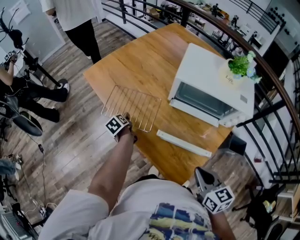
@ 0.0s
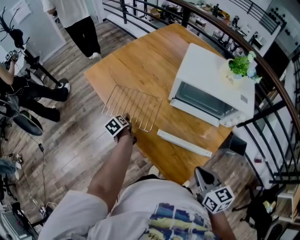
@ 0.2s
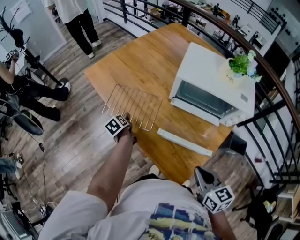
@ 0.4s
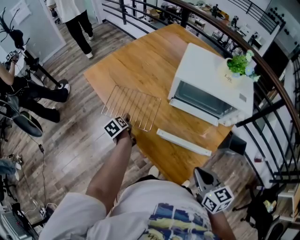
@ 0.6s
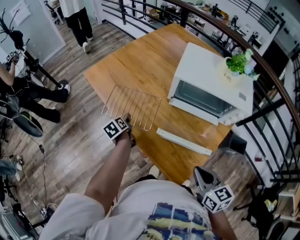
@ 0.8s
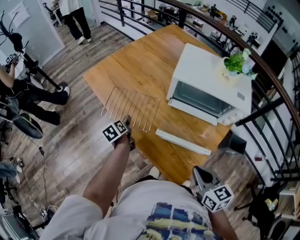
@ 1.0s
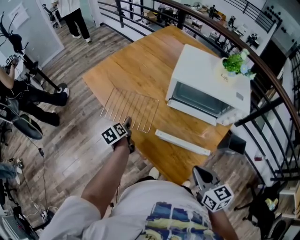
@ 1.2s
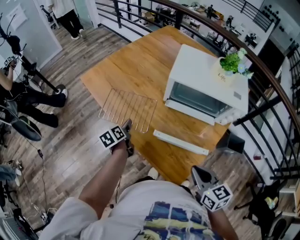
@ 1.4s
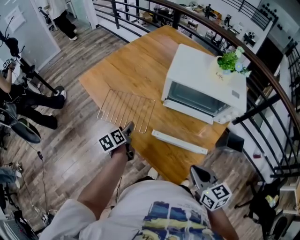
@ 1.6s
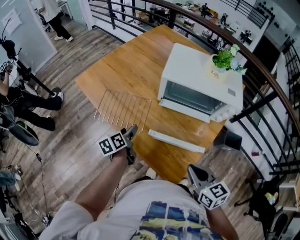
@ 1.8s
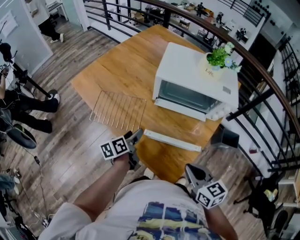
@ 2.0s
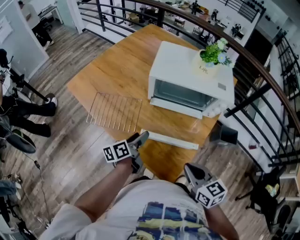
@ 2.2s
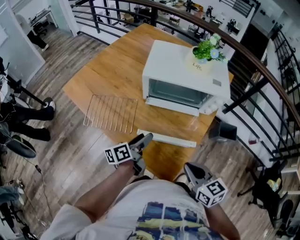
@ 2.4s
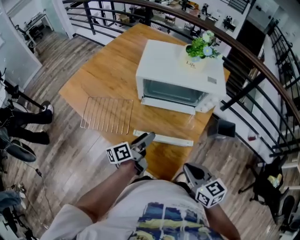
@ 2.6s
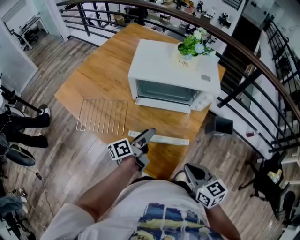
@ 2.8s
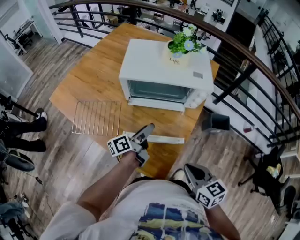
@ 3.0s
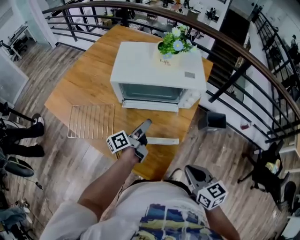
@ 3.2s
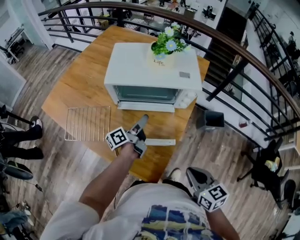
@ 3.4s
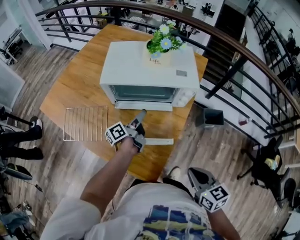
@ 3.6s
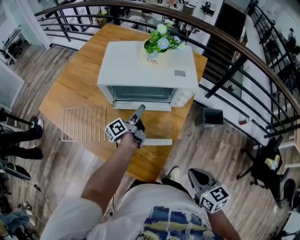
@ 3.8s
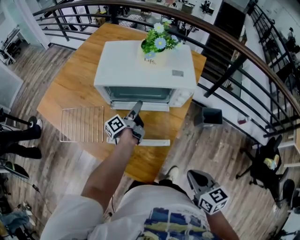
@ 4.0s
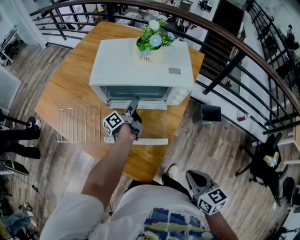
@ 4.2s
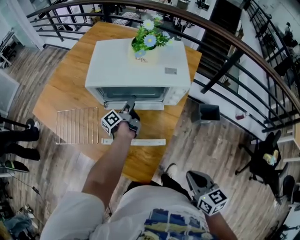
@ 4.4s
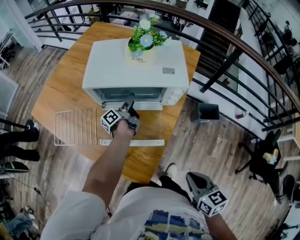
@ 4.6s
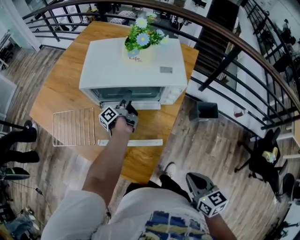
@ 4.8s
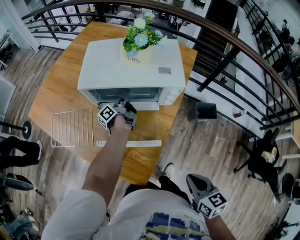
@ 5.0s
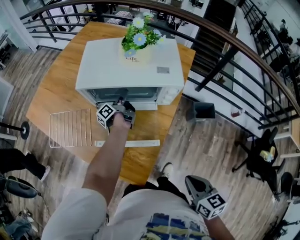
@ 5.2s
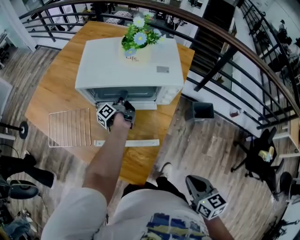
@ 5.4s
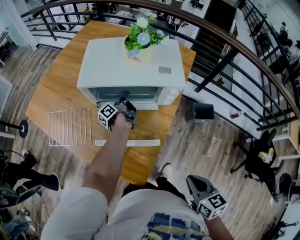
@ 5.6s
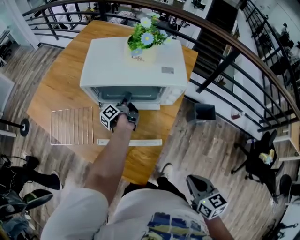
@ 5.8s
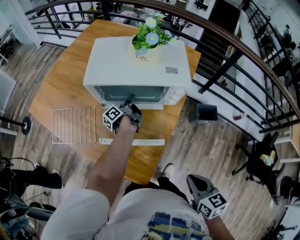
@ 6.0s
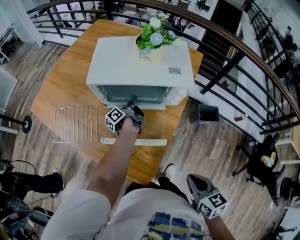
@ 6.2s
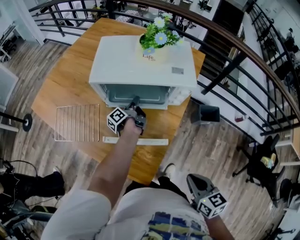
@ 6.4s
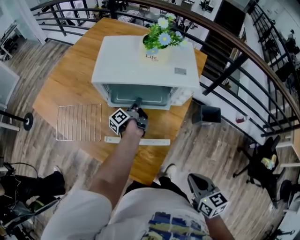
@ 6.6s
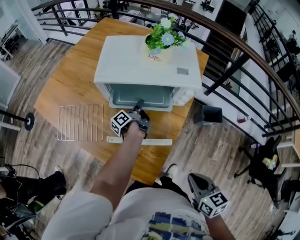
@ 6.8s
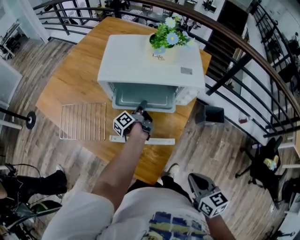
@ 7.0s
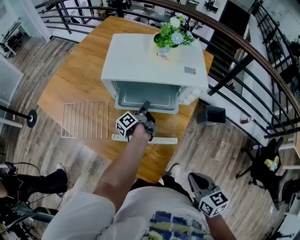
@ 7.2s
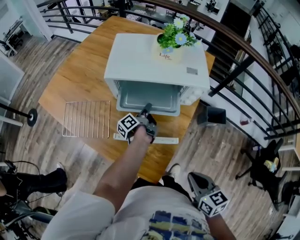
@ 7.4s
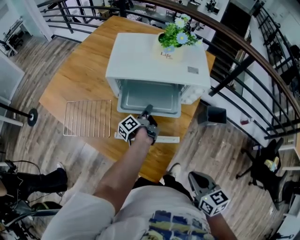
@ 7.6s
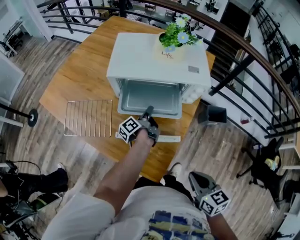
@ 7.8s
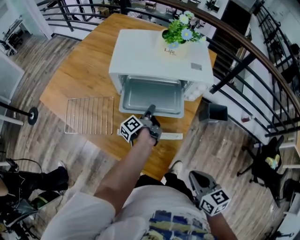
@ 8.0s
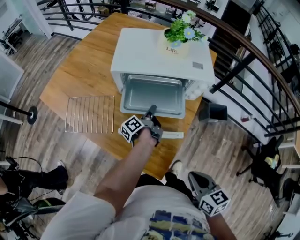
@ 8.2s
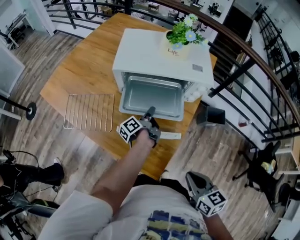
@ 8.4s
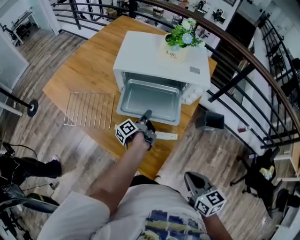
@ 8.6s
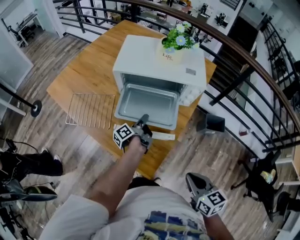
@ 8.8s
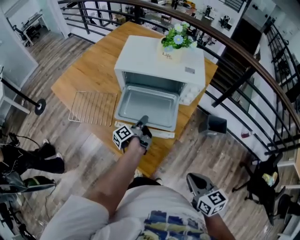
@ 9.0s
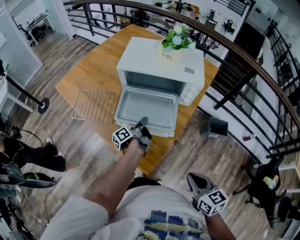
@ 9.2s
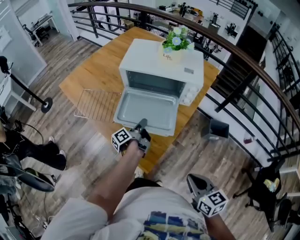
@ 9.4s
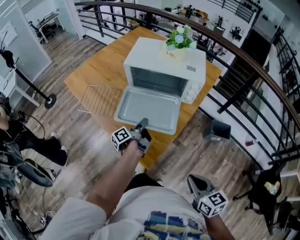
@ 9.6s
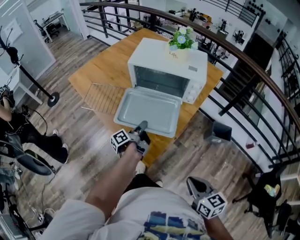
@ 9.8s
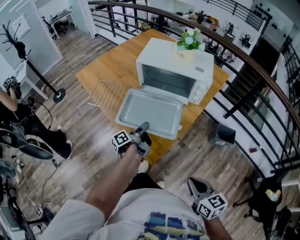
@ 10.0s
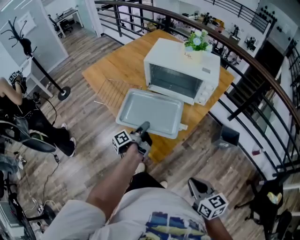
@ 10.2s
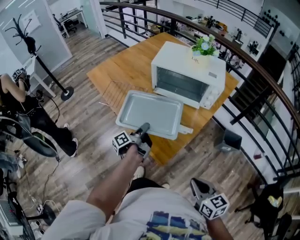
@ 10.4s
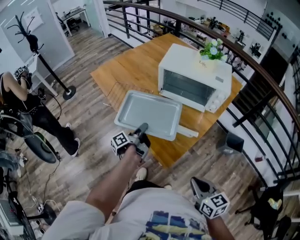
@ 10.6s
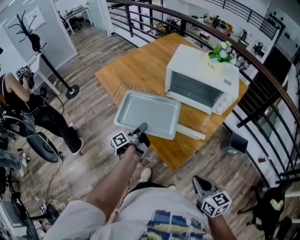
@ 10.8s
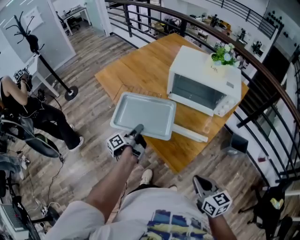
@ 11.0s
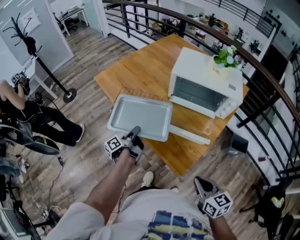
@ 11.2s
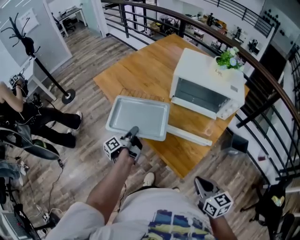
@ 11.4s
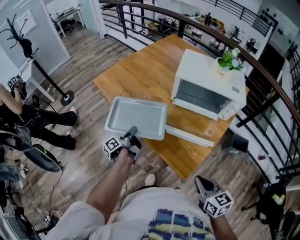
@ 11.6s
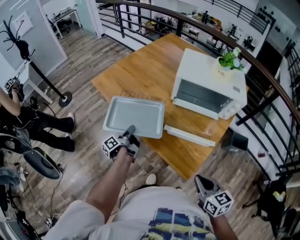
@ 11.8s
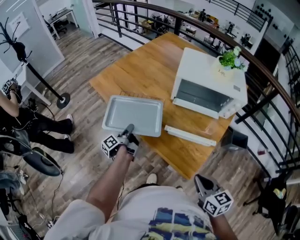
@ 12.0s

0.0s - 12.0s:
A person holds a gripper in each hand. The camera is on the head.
1.6s - 3.0s: The right gripper moves roughly 10 cm.
3.0s - 4.4s: The right gripper ends up approximately 10 cm from where it was.
6.0s - 7.6s: The right gripper shifts by approximately 5 cm.
7.6s - 9.0s: The right gripper shifts by approximately 5 cm.
9.0s - 10.4s: The right gripper shifts by roughly 10 cm.
10.4s - 12.0s: The right gripper ends up roughly 20 cm from where it was.

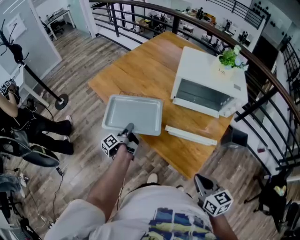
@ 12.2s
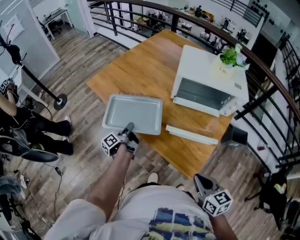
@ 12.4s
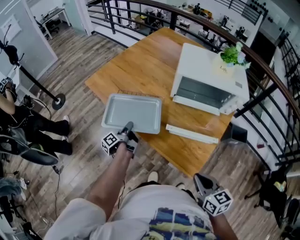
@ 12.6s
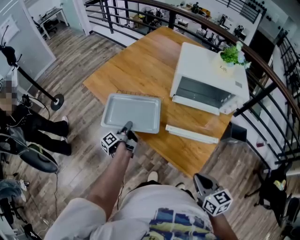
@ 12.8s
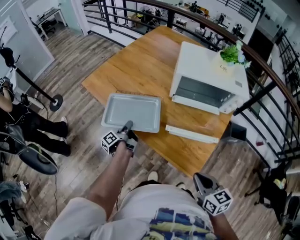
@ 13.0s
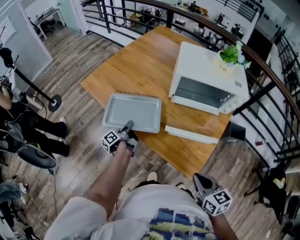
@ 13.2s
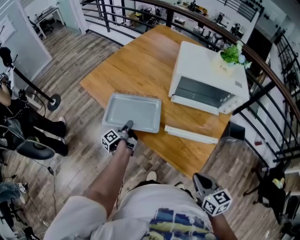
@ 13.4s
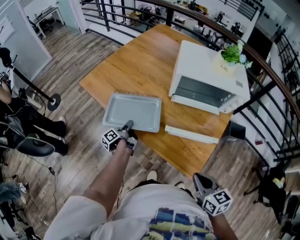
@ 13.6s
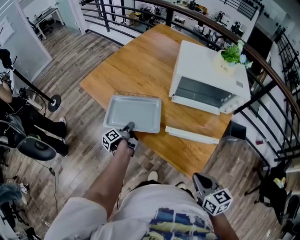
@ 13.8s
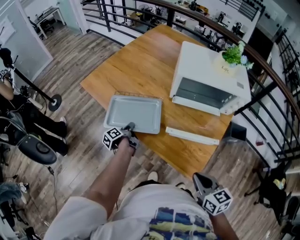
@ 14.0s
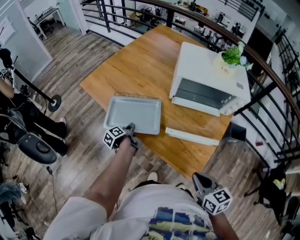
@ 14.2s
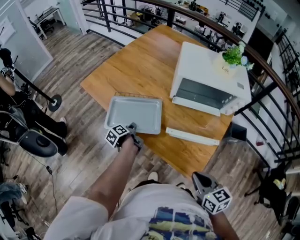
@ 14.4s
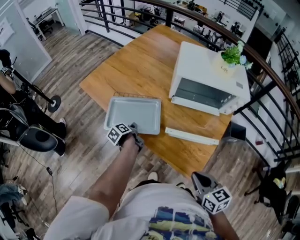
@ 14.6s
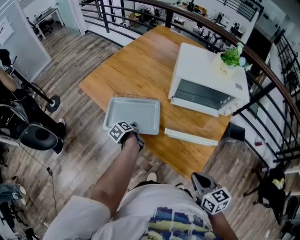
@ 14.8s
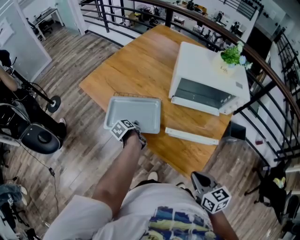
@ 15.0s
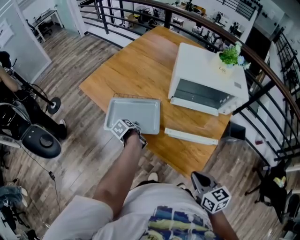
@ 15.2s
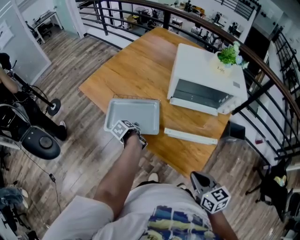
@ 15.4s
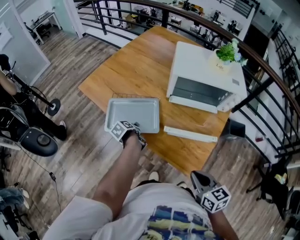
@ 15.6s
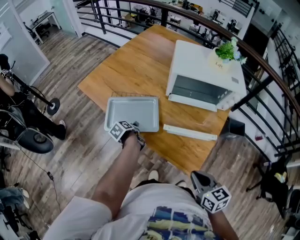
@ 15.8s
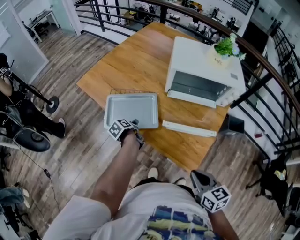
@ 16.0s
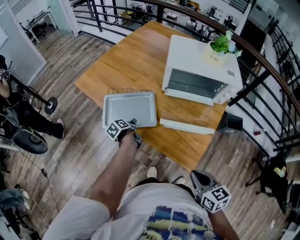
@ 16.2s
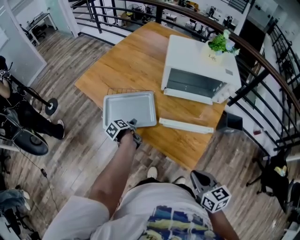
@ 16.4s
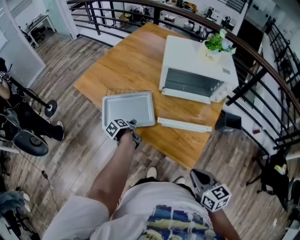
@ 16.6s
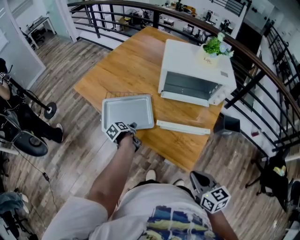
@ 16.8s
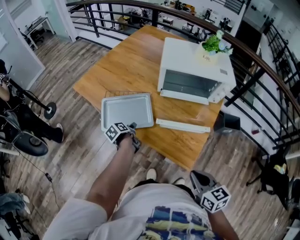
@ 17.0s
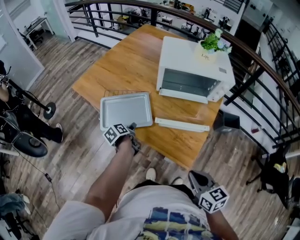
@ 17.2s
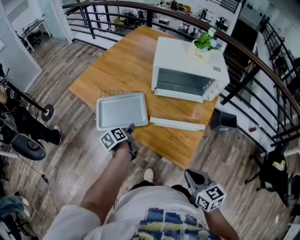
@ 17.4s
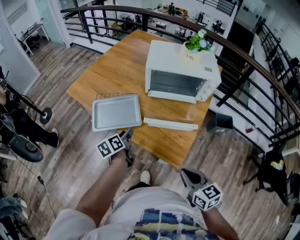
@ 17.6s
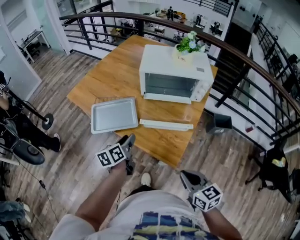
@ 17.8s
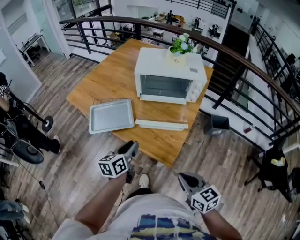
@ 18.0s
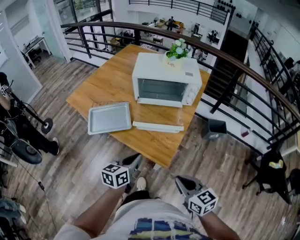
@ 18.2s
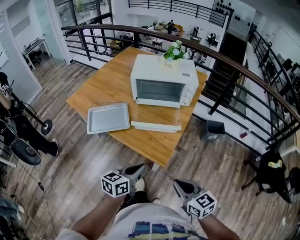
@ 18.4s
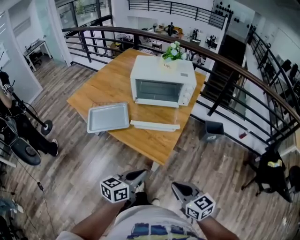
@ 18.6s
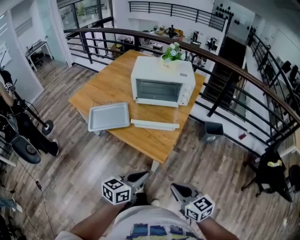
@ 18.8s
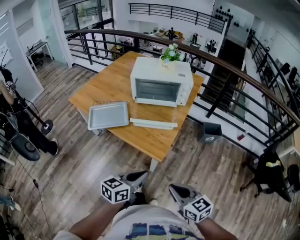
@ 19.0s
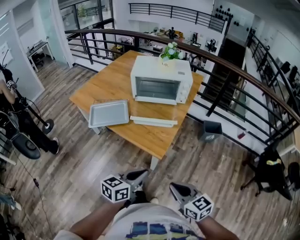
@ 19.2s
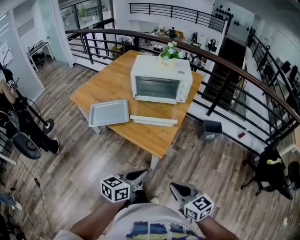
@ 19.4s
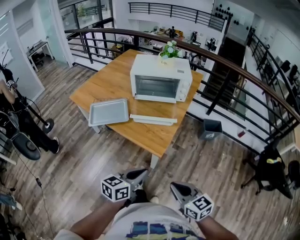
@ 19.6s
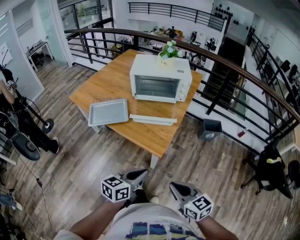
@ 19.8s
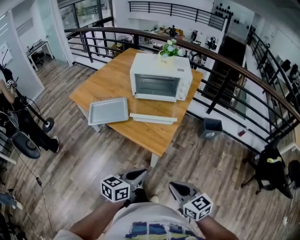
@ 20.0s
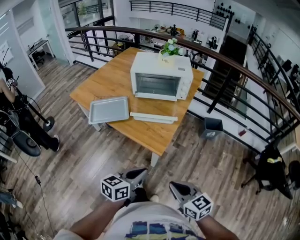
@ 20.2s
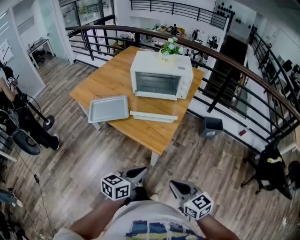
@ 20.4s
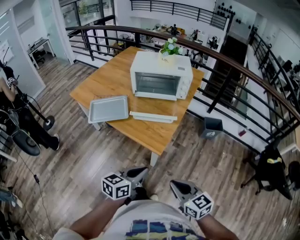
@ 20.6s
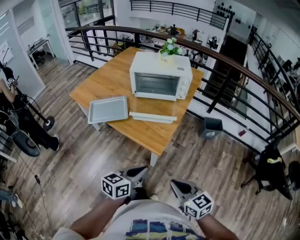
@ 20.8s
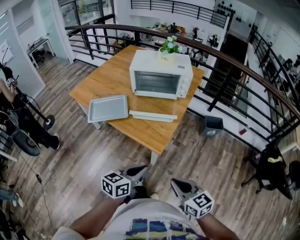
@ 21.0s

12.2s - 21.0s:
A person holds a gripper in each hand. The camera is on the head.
15.2s - 16.6s: The right gripper ends up about 5 cm from where it was.
16.6s - 18.0s: The right gripper changes place by some 10 cm.
18.0s - 19.6s: The right gripper ends up approximately 15 cm from where it was.

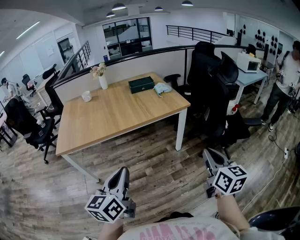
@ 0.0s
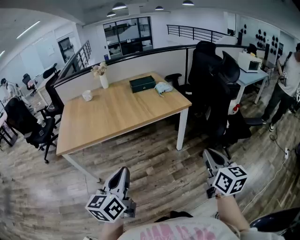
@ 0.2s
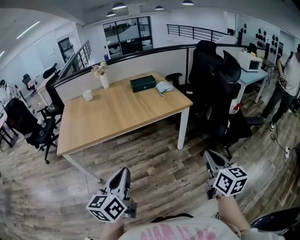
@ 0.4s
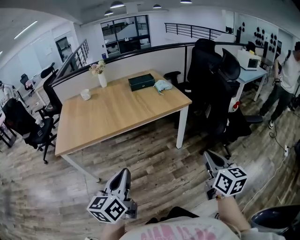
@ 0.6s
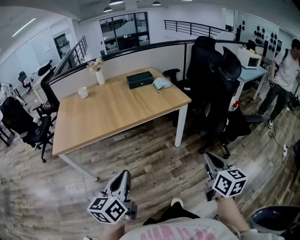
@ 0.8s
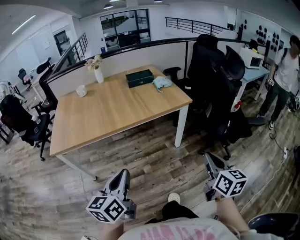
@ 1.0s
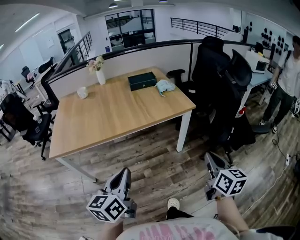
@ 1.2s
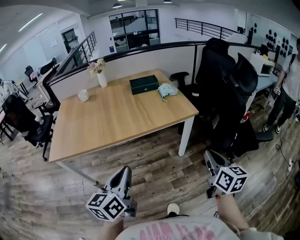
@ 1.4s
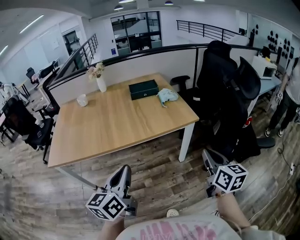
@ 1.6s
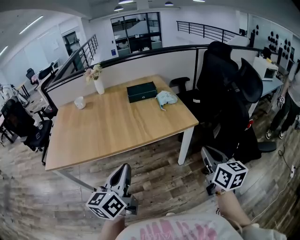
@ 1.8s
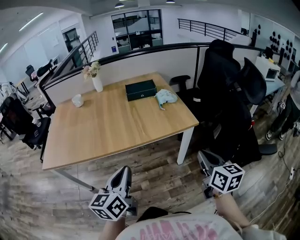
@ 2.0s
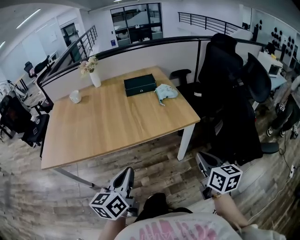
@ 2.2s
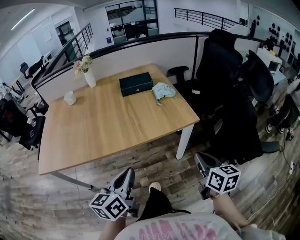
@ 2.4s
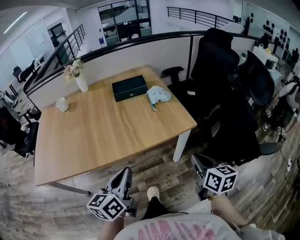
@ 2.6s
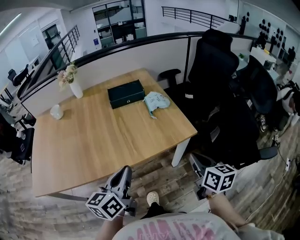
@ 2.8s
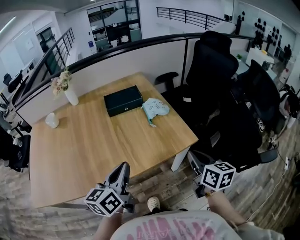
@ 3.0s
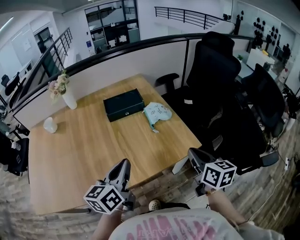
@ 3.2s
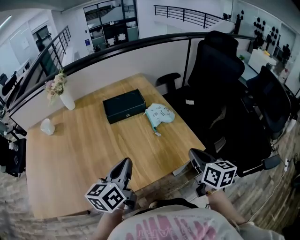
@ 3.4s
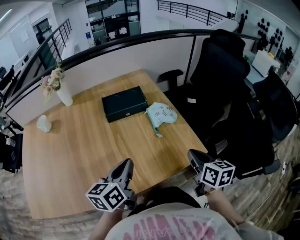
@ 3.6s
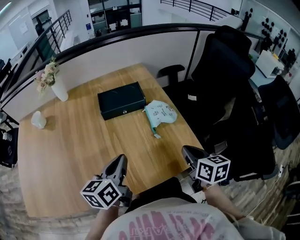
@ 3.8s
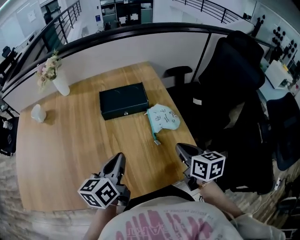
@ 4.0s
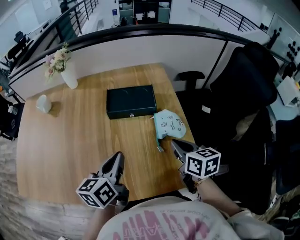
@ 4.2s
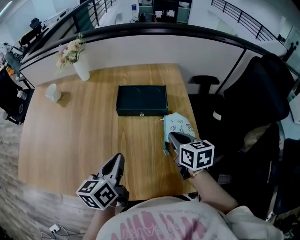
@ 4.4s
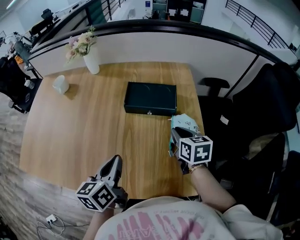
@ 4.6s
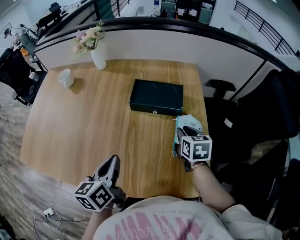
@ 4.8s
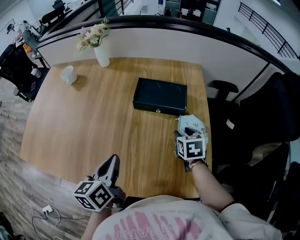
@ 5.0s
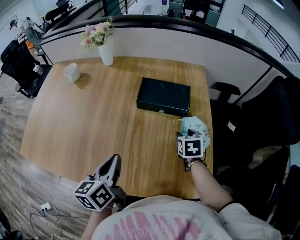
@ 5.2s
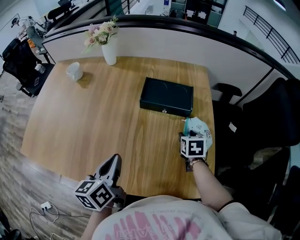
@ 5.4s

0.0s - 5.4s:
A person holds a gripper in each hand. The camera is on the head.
0.0s - 1.4s: The two grippers go about 15 cm forward.
1.4s - 2.8s: The grippers both shift forward by approximately 25 cm.
2.8s - 4.0s: The two grippers go some 25 cm forward.
4.0s - 5.4s: The right gripper is displaced forward and downward by approximately 20 cm, rotates approximately 30 degrees, and opens up. Meanwhile the left gripper is displaced to the left by some 10 cm, and changes its angle by approximately 30 degrees.
